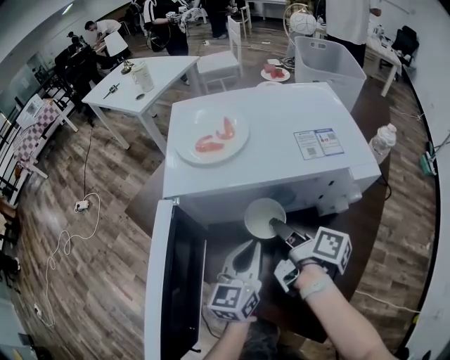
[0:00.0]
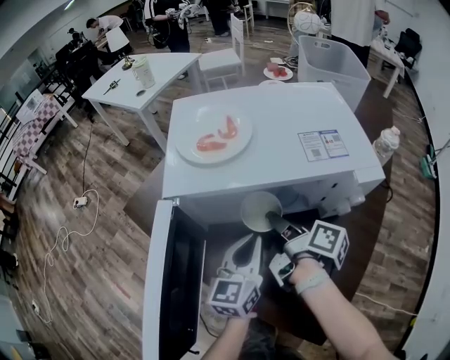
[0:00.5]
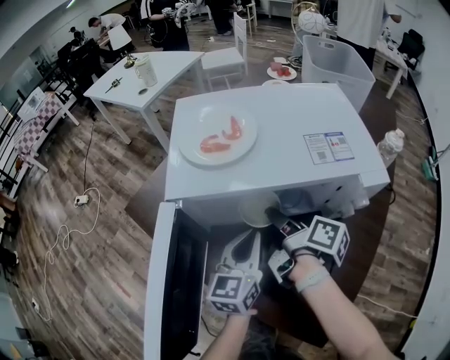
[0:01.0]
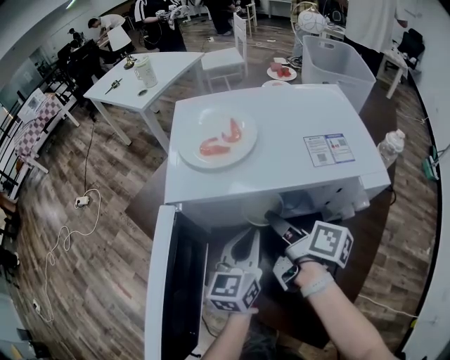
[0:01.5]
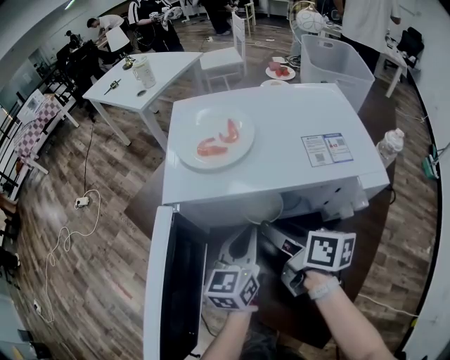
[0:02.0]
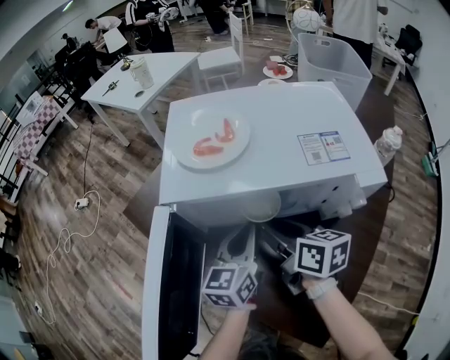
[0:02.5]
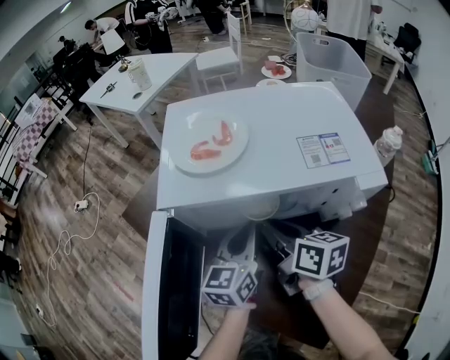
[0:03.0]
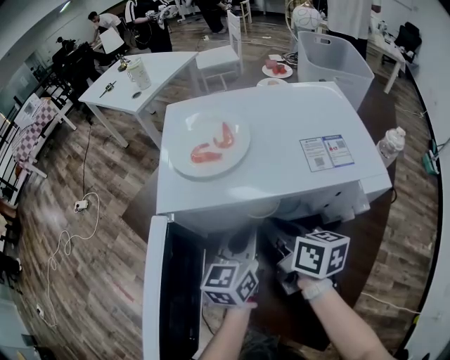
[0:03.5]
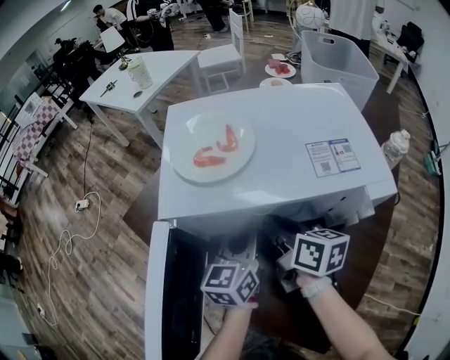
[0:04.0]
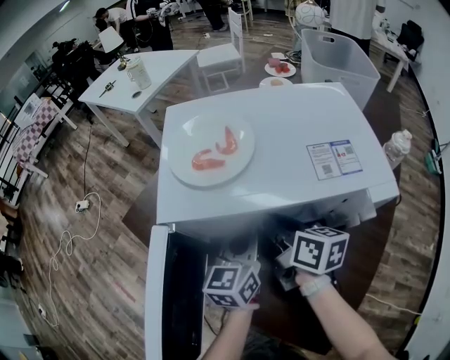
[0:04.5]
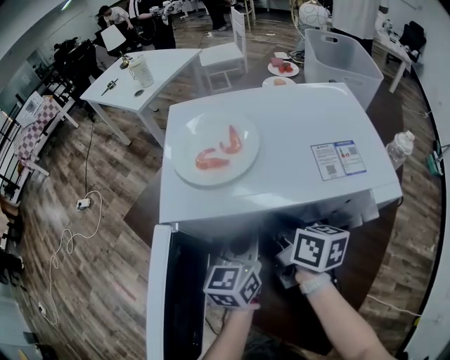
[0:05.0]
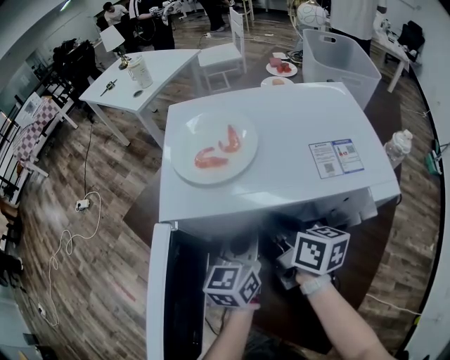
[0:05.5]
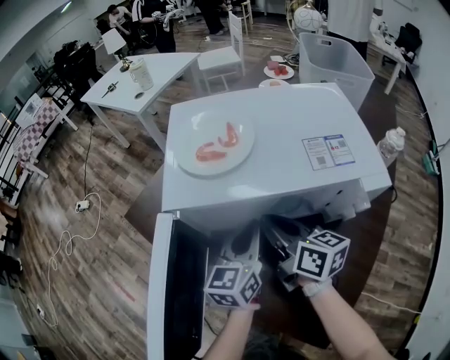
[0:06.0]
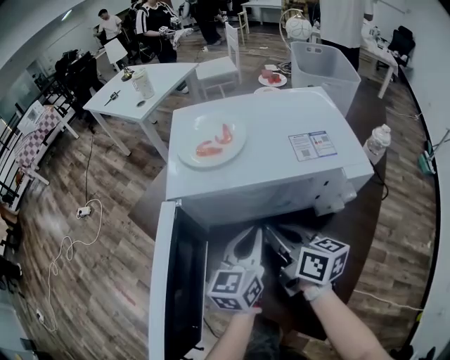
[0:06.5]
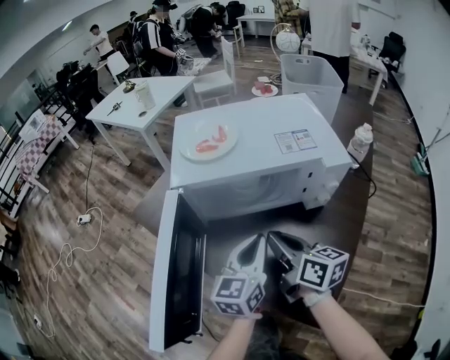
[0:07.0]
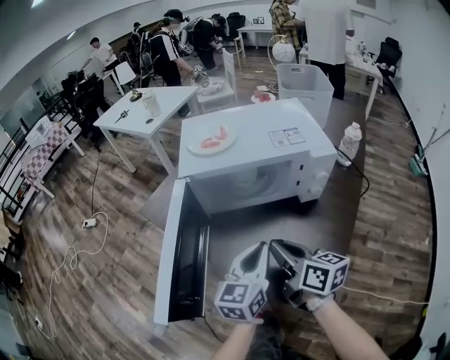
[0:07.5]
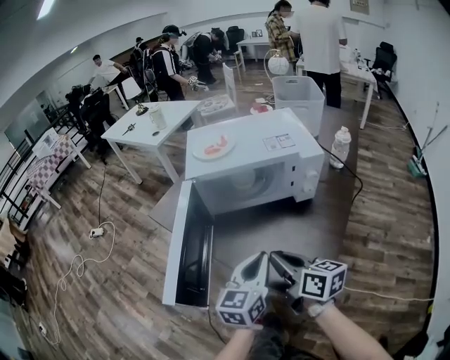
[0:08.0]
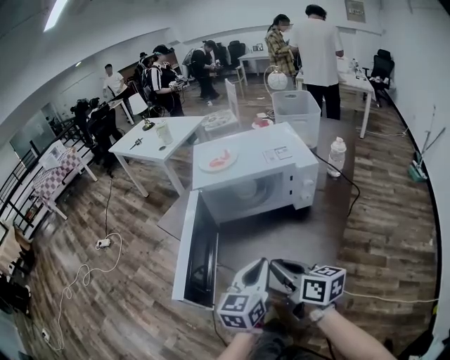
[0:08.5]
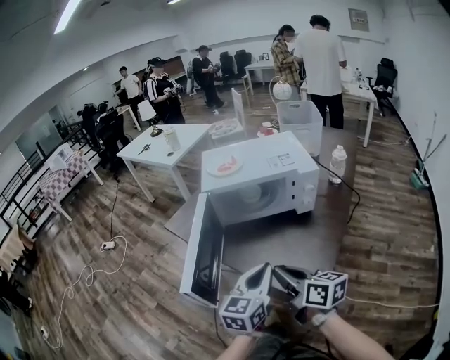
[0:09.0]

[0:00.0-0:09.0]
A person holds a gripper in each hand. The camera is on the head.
0:00.0 to 0:02.0: The right gripper rotates approximately 30 degrees; the left gripper goes approximately 5 cm forward.
0:02.0 to 0:04.5: The right gripper closes its fingers.
0:04.5 to 0:07.0: The grippers both shift backward by approximately 15 cm.
0:07.0 to 0:09.0: Both grippers move backward, about 20 cm.

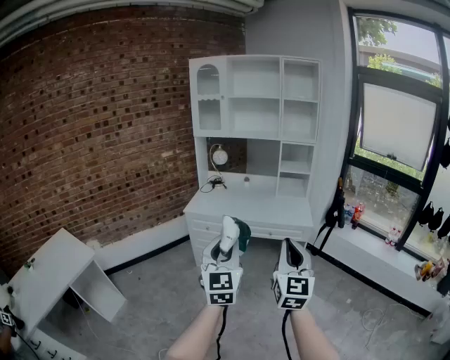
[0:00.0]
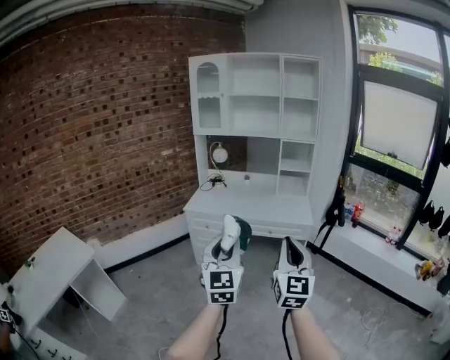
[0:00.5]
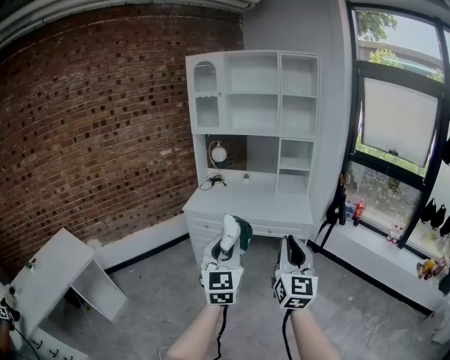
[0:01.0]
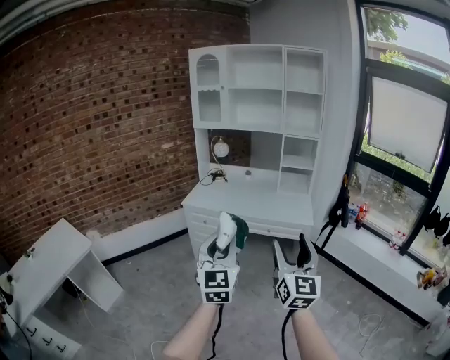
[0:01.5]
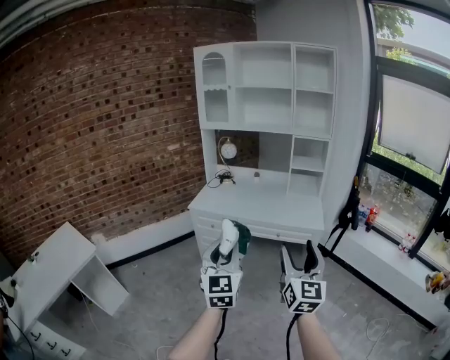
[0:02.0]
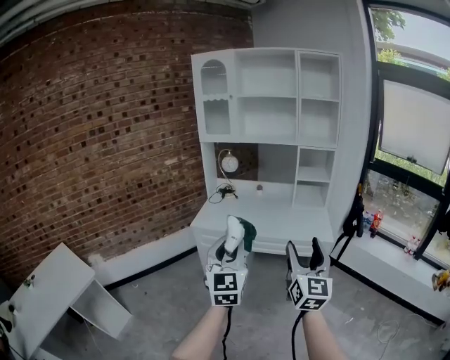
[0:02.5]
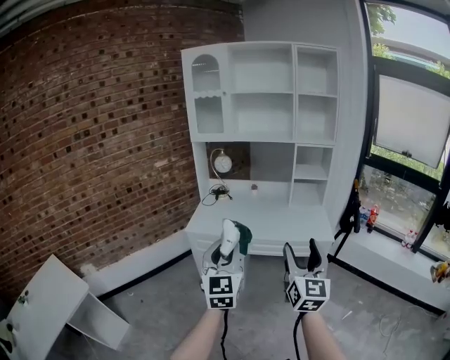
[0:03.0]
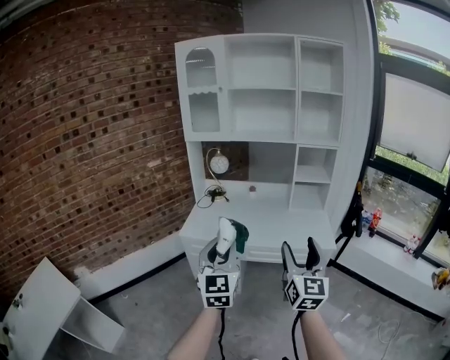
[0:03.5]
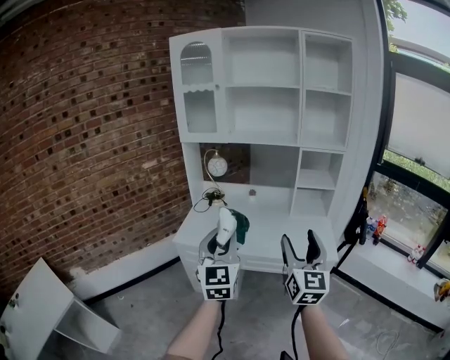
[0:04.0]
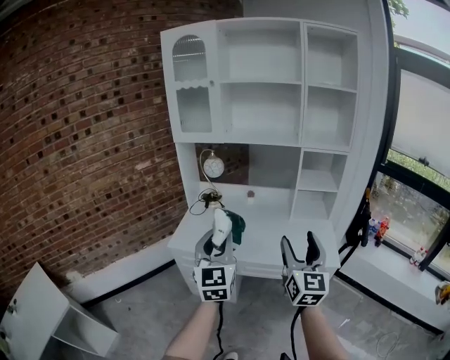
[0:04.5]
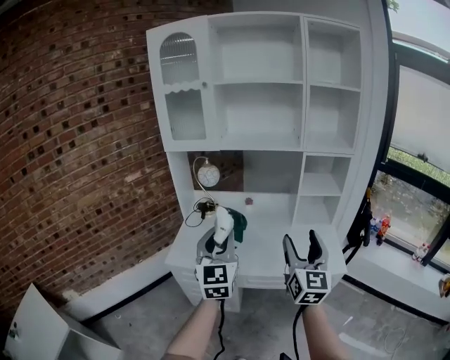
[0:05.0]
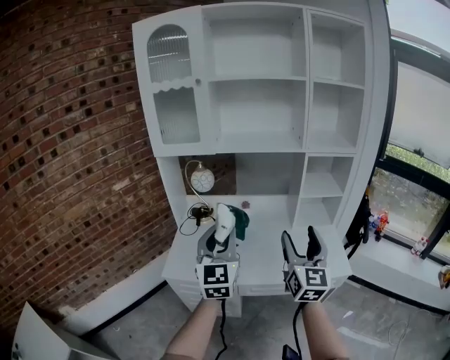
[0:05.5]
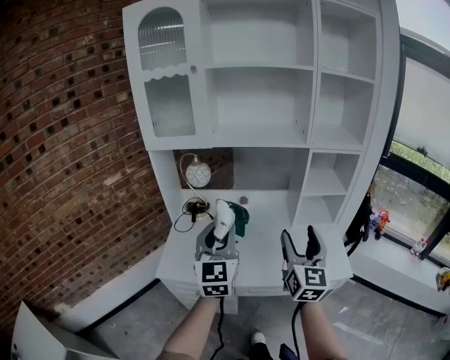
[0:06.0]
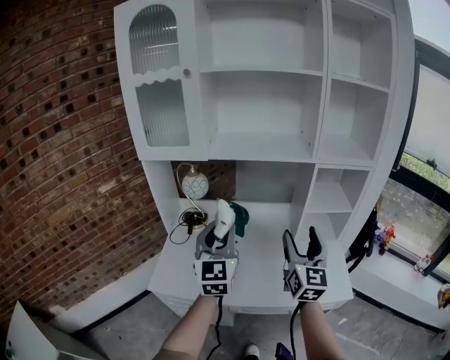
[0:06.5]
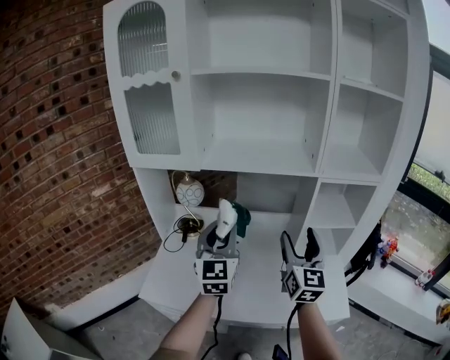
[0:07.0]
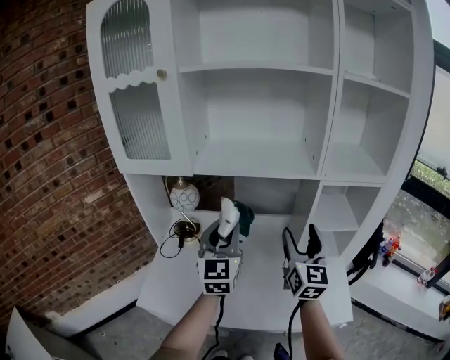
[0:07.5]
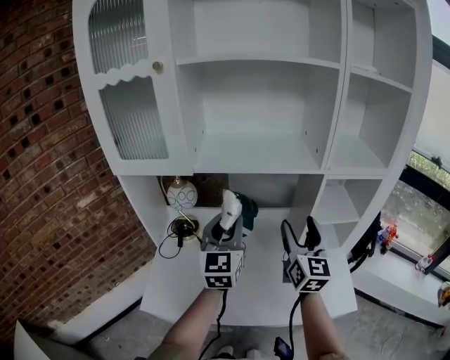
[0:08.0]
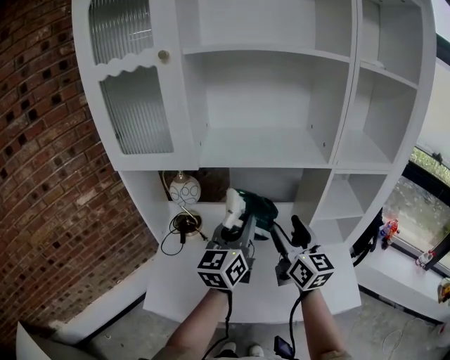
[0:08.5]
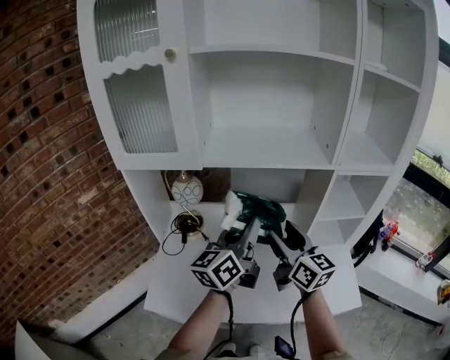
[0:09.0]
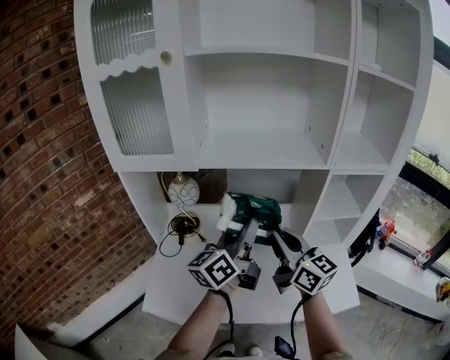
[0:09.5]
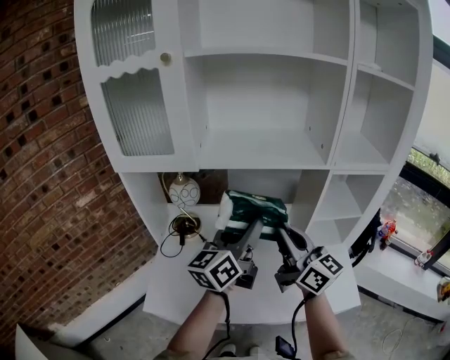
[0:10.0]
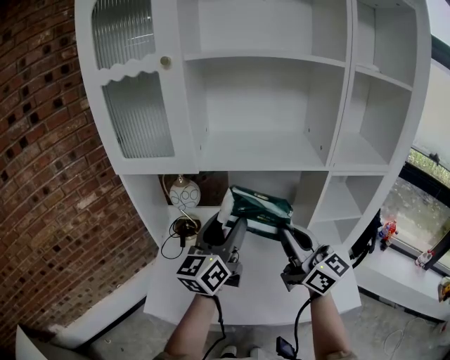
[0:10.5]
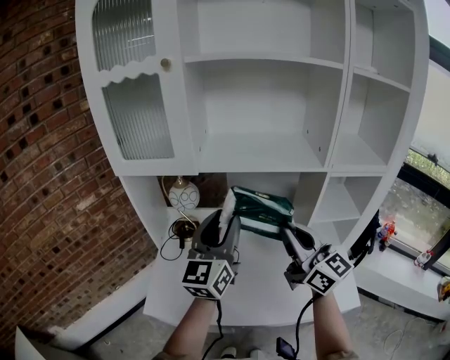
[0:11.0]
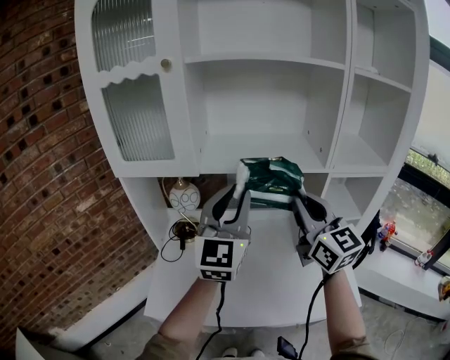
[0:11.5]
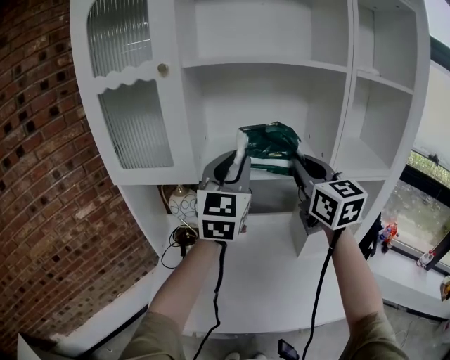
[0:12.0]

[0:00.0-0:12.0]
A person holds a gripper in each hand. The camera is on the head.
0:00.0 to 0:02.0: Both grippers move forward, about 10 cm. The right gripper opens.
0:02.0 to 0:04.0: Both grippers travel together forward, roughly 35 cm.
0:04.0 to 0:06.0: Both grippers travel together forward, approximately 25 cm.
0:06.0 to 0:08.0: Both grippers move forward, roughly 25 cm.
0:08.0 to 0:10.0: The right gripper is displaced to the left by roughly 10 cm, turns by roughly 40 degrees, and closes up. The left gripper swivels approximately 40 degrees, and opens up.
0:10.0 to 0:12.0: Both grippers move upward and forward, roughly 20 cm. The left gripper twists roughly 50 degrees clockwise, seen from behind, and closes its fingers; the right gripper rotates some 30 degrees.

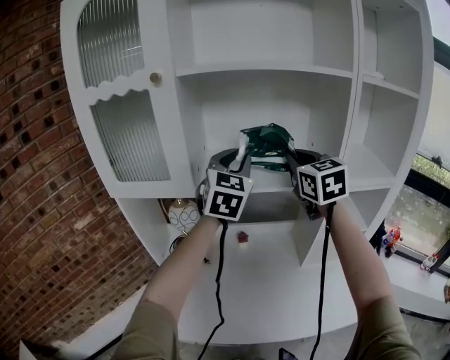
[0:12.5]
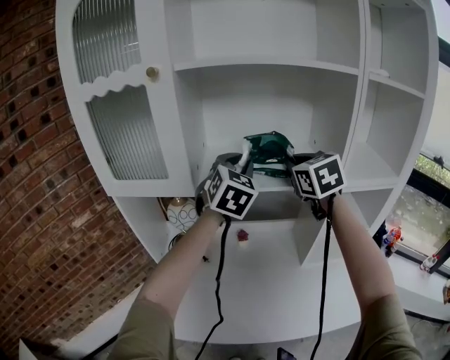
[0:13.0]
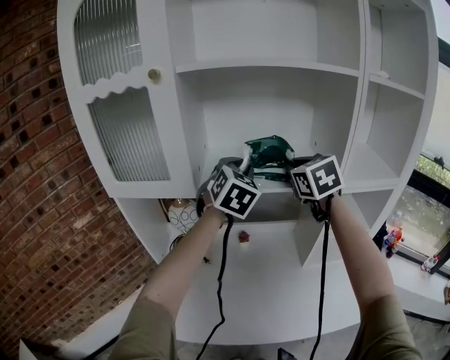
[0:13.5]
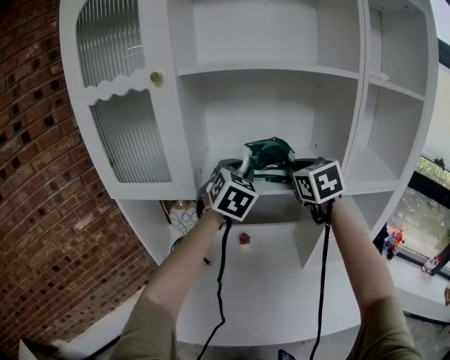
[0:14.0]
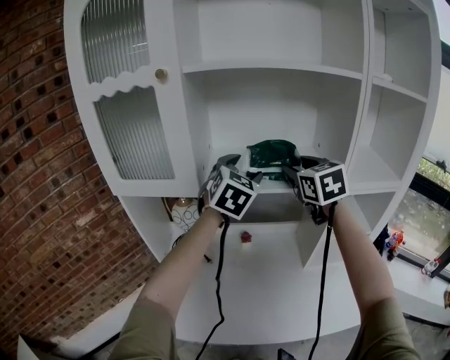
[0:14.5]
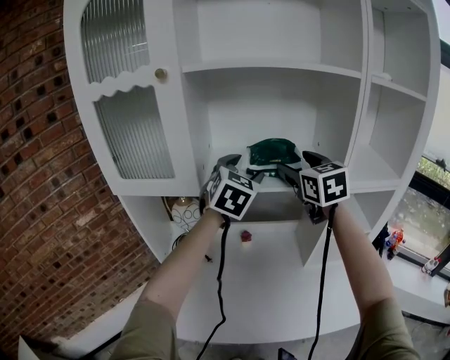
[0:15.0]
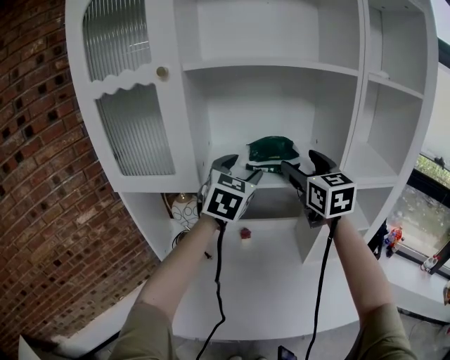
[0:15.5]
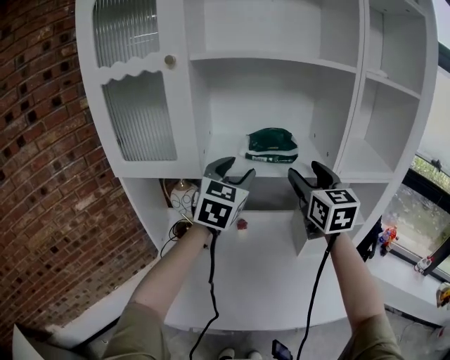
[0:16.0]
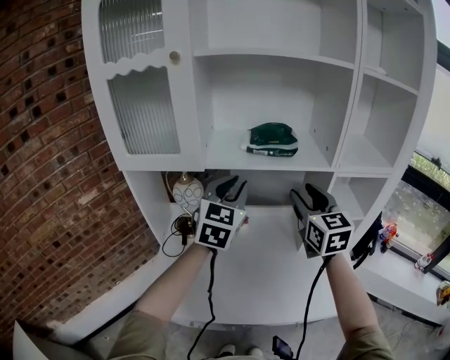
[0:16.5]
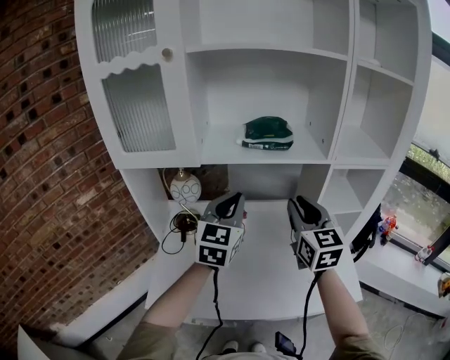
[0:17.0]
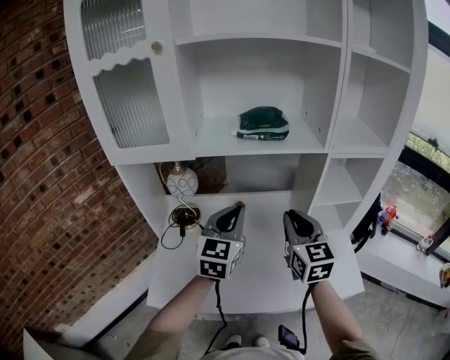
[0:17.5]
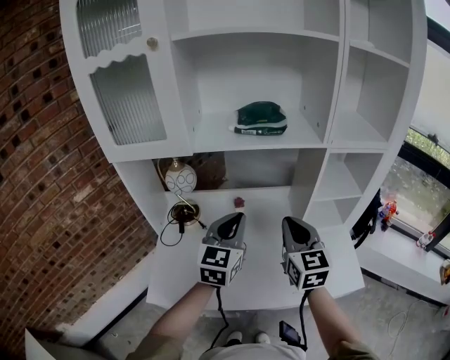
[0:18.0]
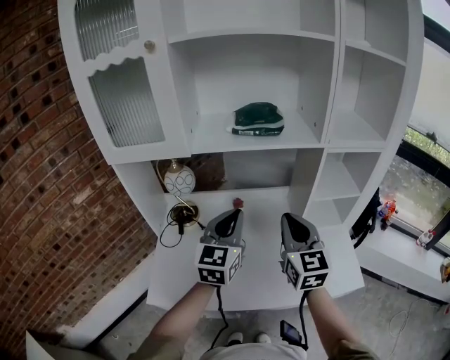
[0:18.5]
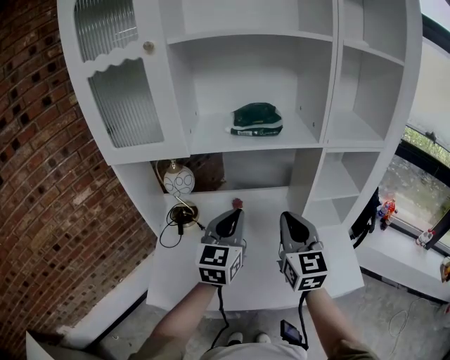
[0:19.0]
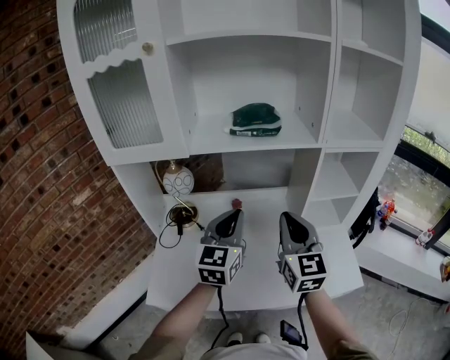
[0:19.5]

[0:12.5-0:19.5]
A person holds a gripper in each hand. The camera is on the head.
0:12.5 to 0:14.5: The right gripper opens up, while the left gripper moves downward, some 5 cm, and opens its fingers.
0:14.5 to 0:16.0: The two grippers go approximately 10 cm backward.
0:16.0 to 0:17.5: The grippers both shift downward and backward by roughly 20 cm. The right gripper closes. Meanwhile the left gripper closes up.
0:17.5 to 0:19.5: There are only small adjustments of the grippers.
